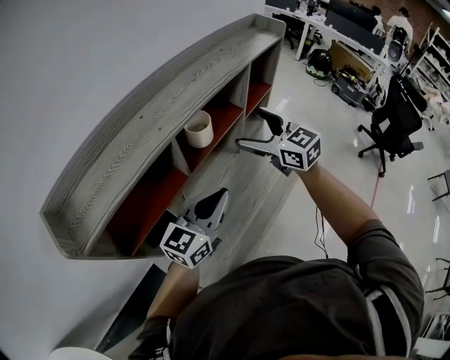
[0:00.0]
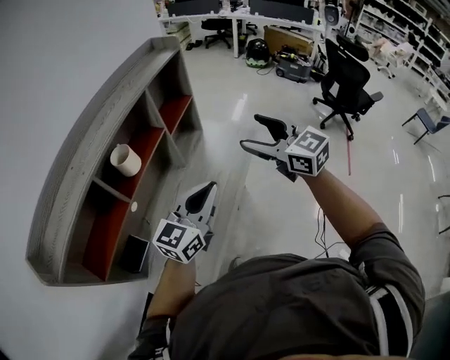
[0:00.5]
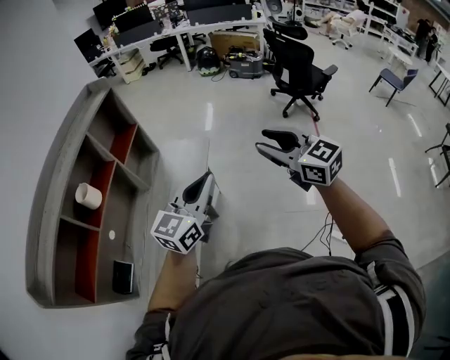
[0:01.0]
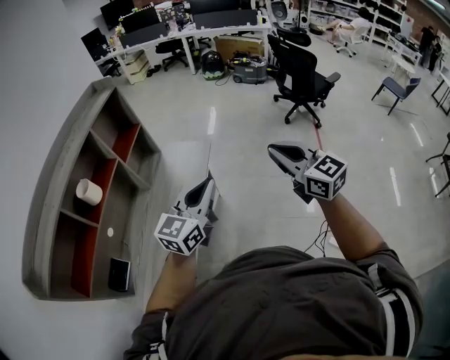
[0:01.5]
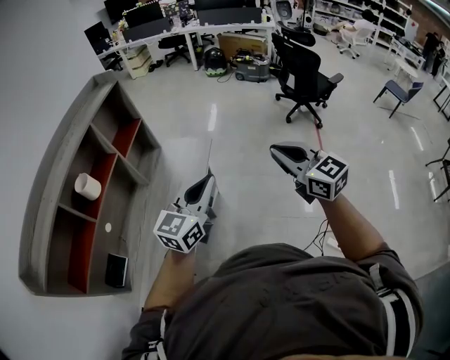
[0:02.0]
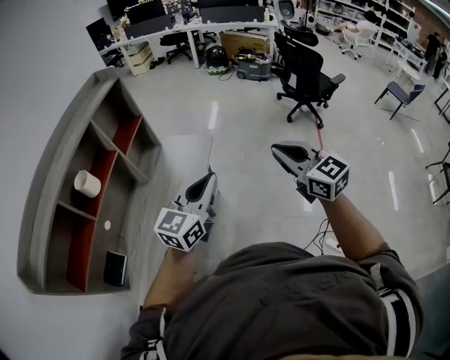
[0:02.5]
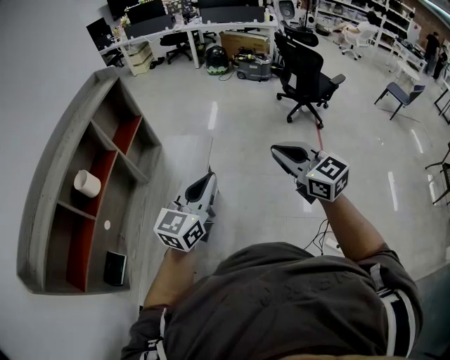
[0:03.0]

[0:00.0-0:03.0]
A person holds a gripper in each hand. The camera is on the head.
0:00.0 to 0:01.5: The right gripper changes place by approximately 50 cm, turns by about 30 degrees, and closes its fingers; the left gripper shifts by about 40 cm, and changes its angle by roughly 20 degrees.
0:01.5 to 0:03.0: Both grippers stay about where they are.

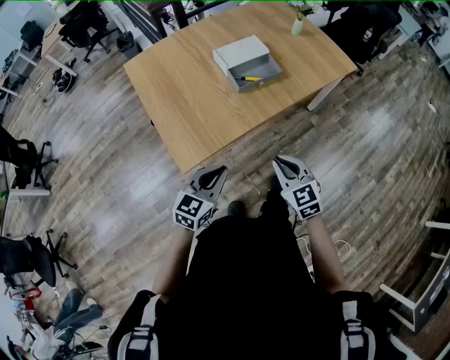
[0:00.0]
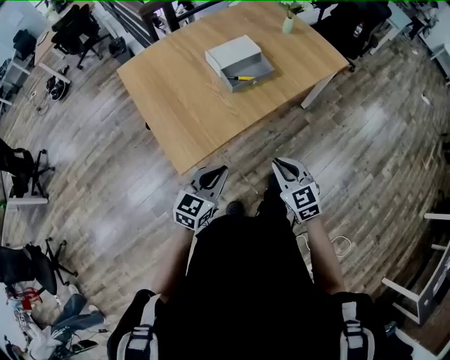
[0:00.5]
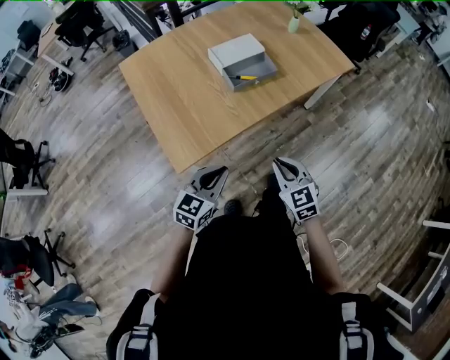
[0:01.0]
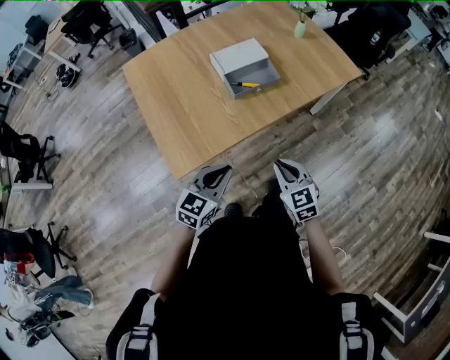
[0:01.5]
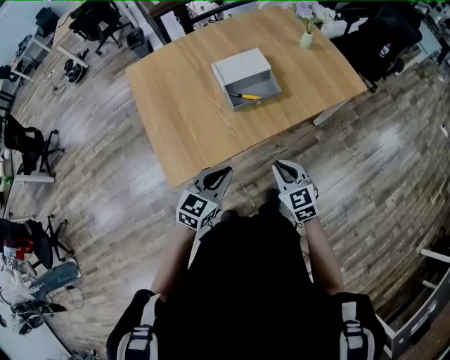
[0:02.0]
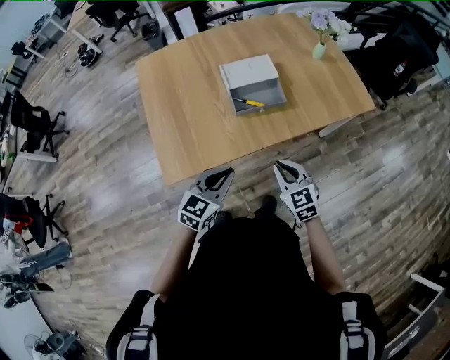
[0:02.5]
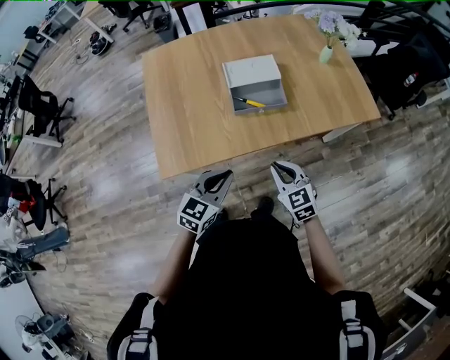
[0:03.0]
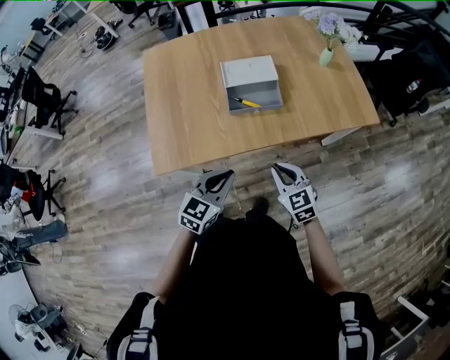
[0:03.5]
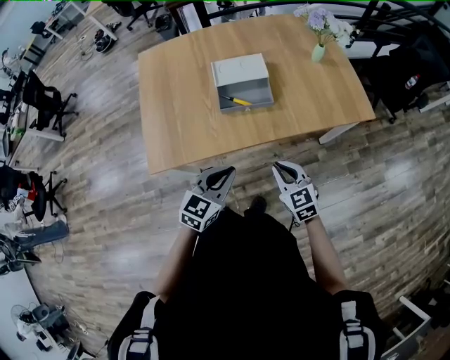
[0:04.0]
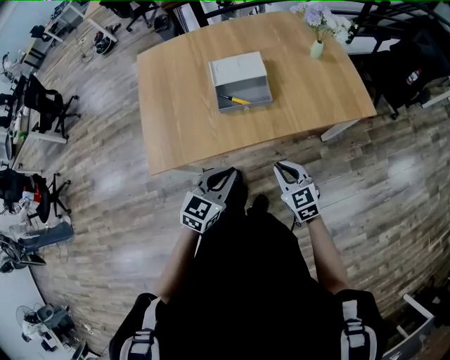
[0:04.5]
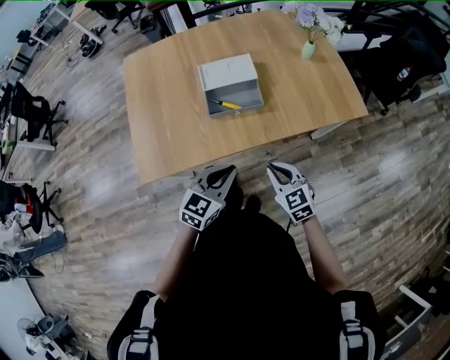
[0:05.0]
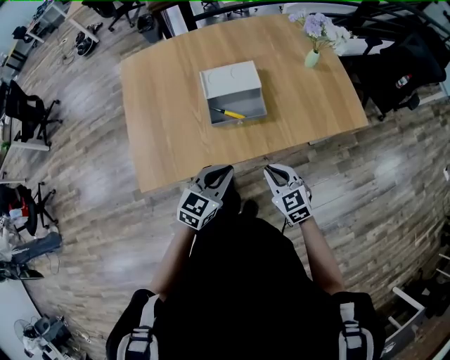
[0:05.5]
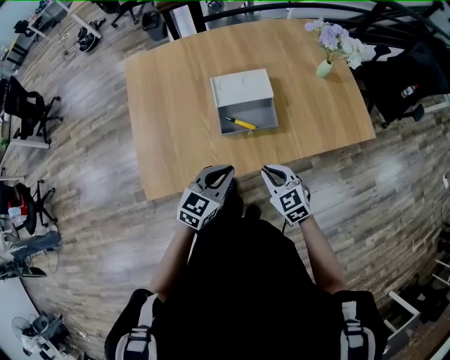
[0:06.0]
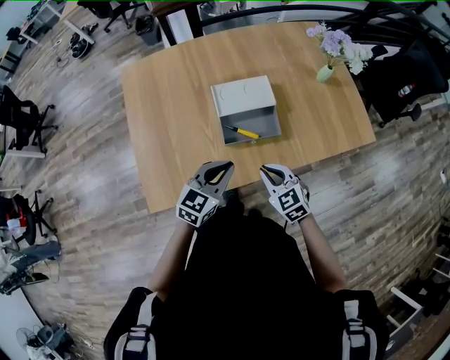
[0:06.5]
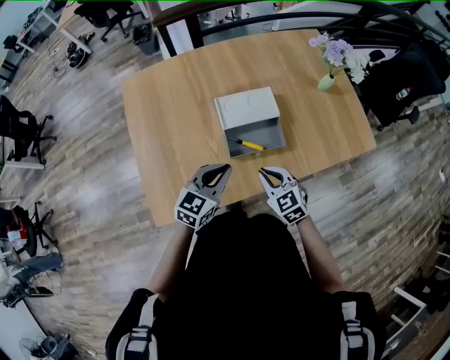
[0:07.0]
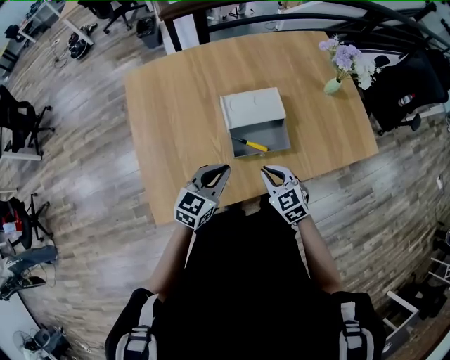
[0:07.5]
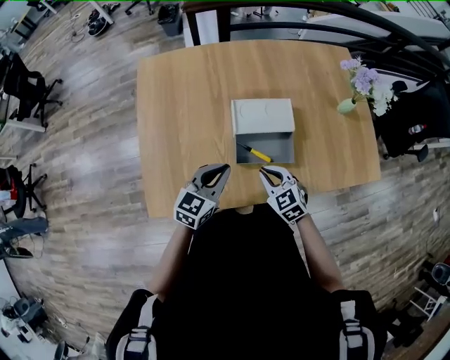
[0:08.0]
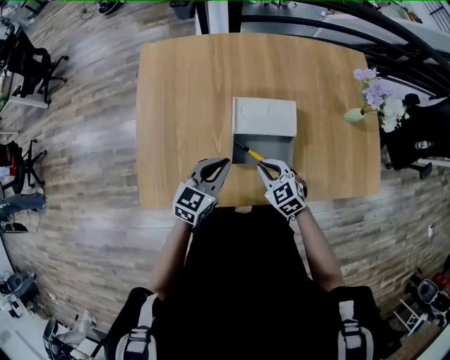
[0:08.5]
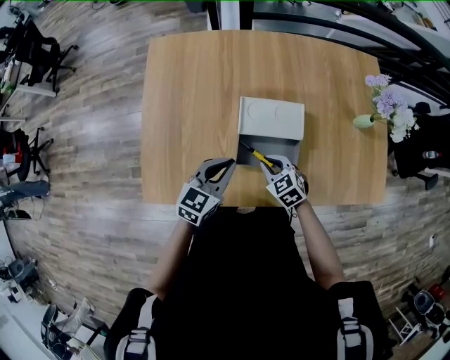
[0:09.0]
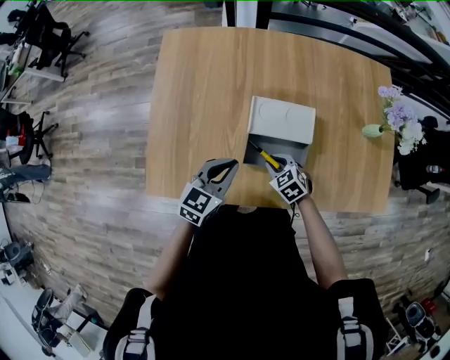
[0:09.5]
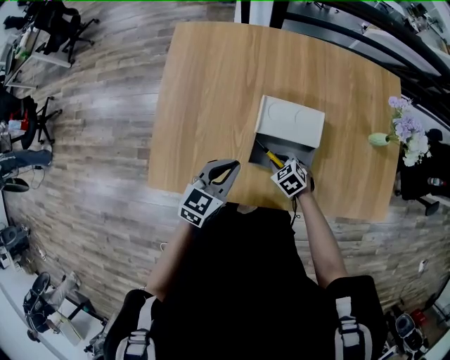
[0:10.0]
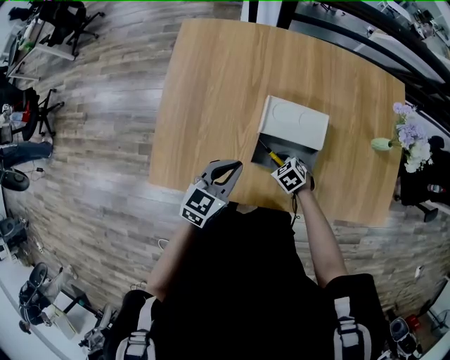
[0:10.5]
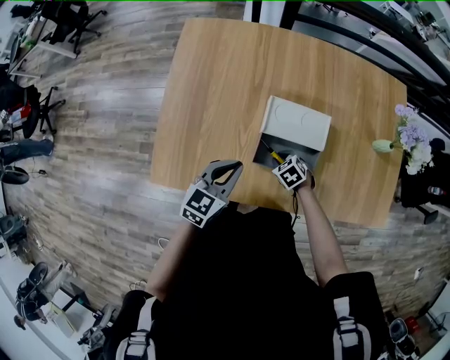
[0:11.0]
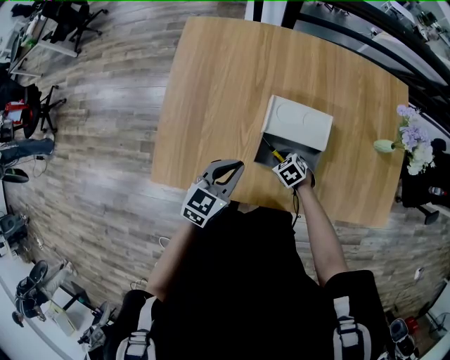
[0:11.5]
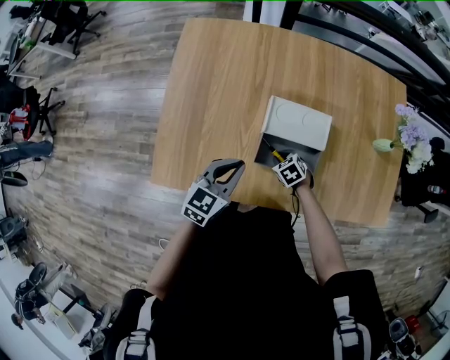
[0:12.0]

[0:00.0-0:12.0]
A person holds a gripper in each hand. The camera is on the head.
0:00.0 to 0:02.0: The two grippers go about 15 cm forward and to the right.
0:02.0 to 0:04.0: The two grippers go some 15 cm to the right.
0:04.0 to 0:06.0: Both grippers move forward and to the left, about 15 cm.
0:06.0 to 0:08.0: The grippers both shift forward and to the left by approximately 15 cm.
0:08.0 to 0:10.0: The right gripper goes some 15 cm downward and forward, and changes its angle by approximately 30 degrees.
0:10.0 to 0:12.0: The grippers make only small movements.

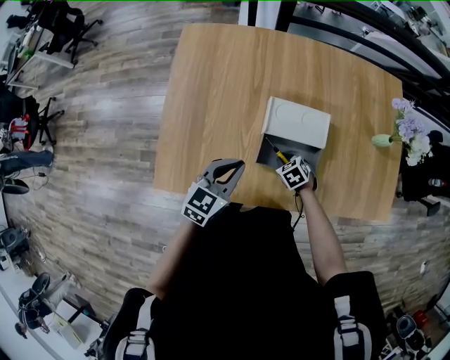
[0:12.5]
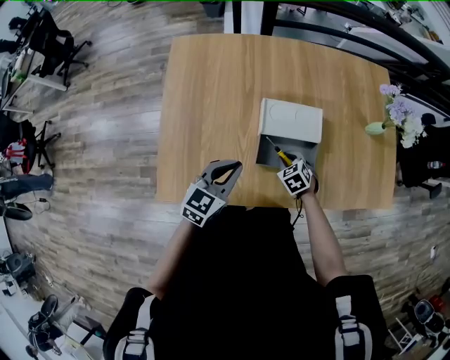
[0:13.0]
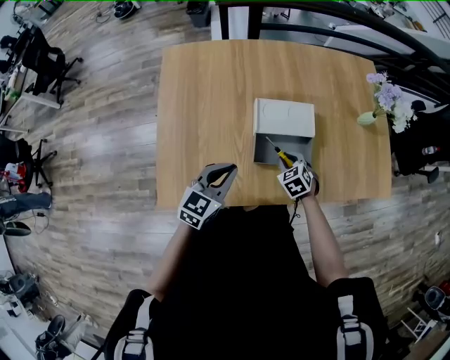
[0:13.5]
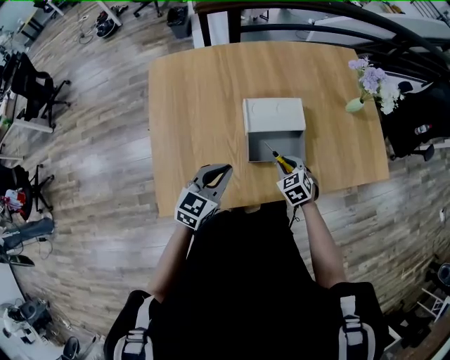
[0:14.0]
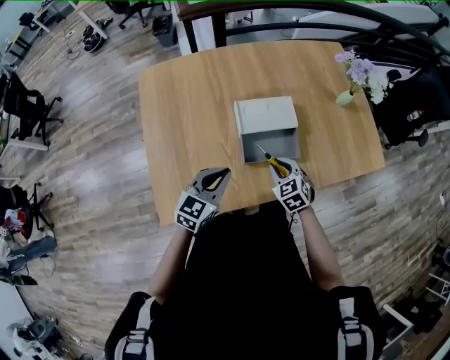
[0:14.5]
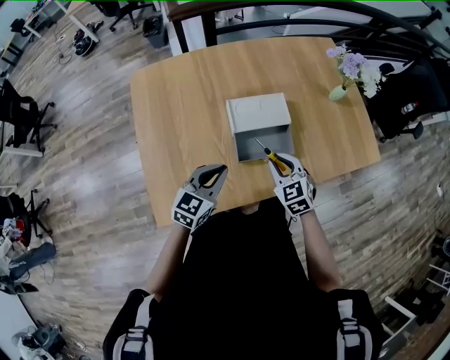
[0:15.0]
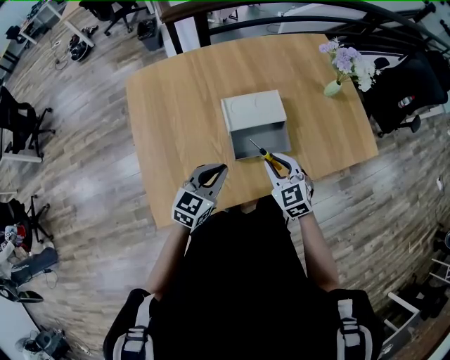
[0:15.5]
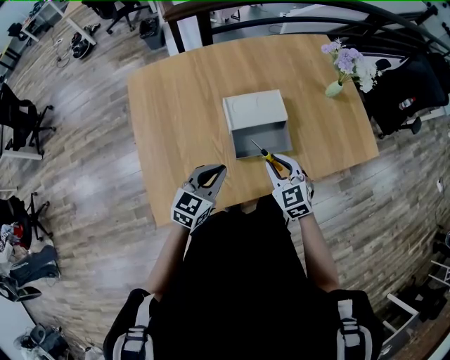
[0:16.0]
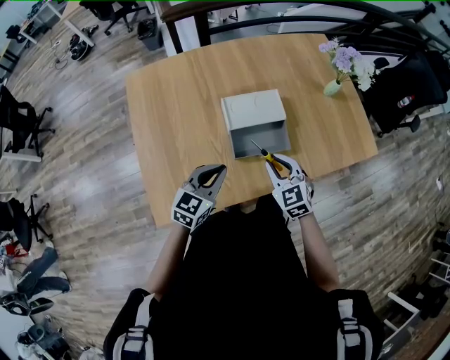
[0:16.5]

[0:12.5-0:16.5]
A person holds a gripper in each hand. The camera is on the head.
0:12.5 to 0:14.5: The right gripper goes about 15 cm upward, and changes its angle by approximately 30 degrees.
0:14.5 to 0:16.5: The right gripper shifts some 5 cm upward.

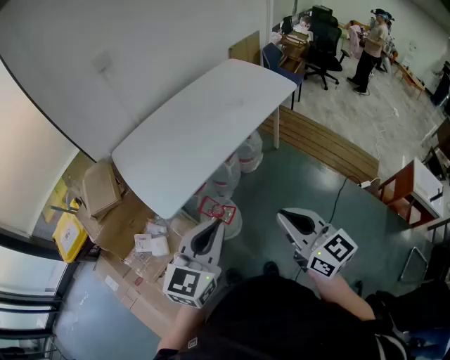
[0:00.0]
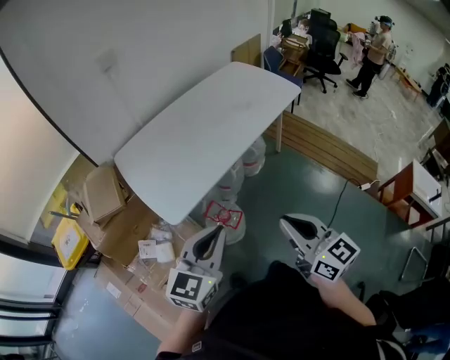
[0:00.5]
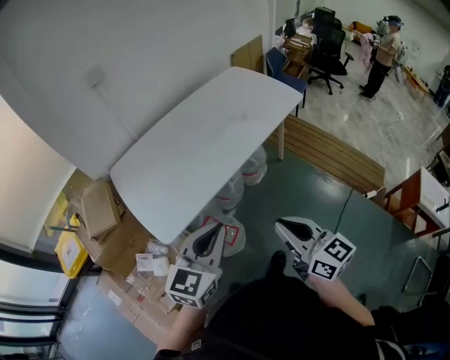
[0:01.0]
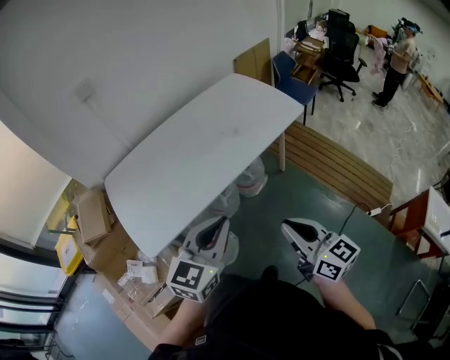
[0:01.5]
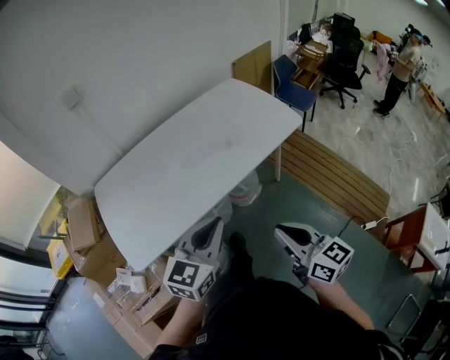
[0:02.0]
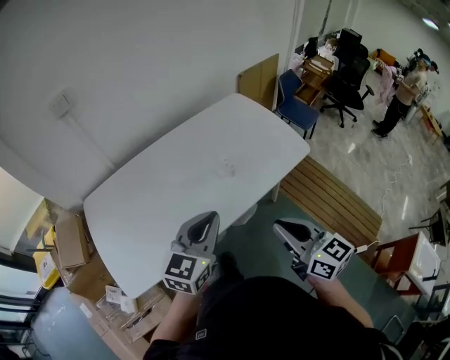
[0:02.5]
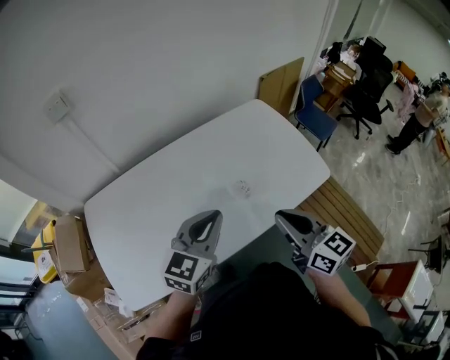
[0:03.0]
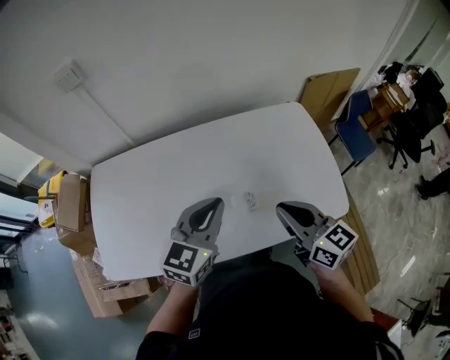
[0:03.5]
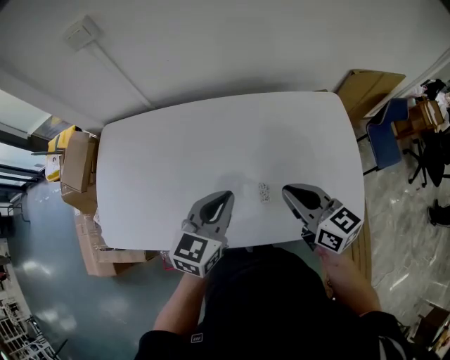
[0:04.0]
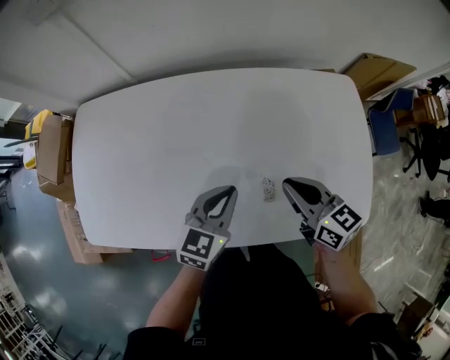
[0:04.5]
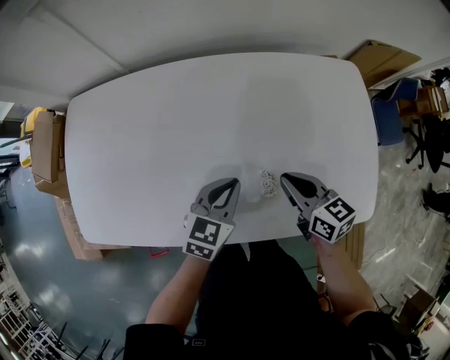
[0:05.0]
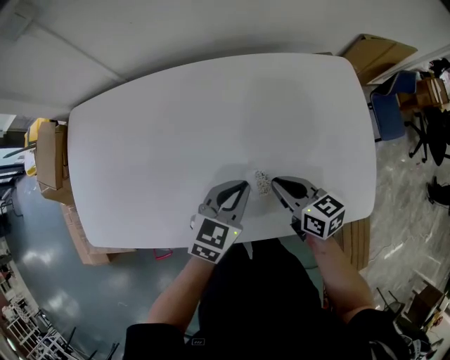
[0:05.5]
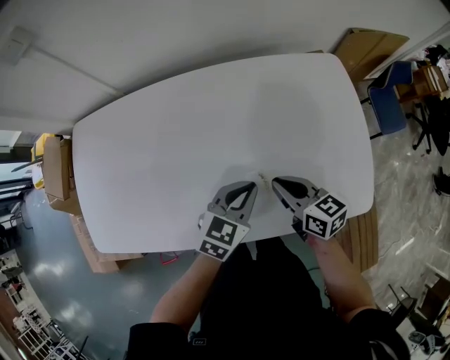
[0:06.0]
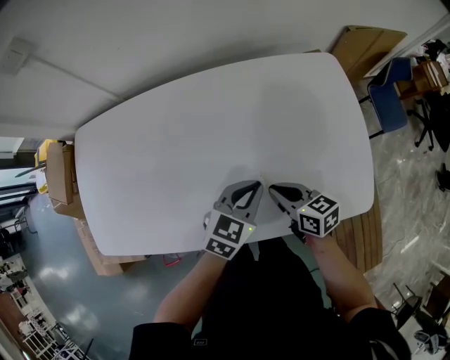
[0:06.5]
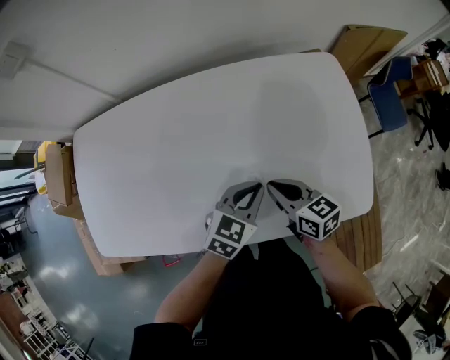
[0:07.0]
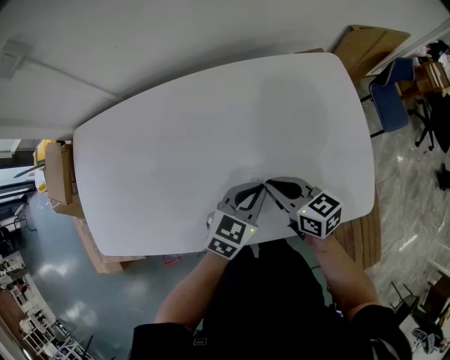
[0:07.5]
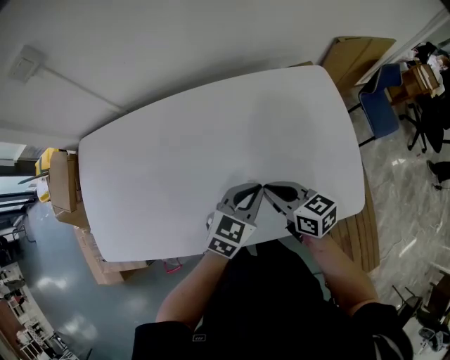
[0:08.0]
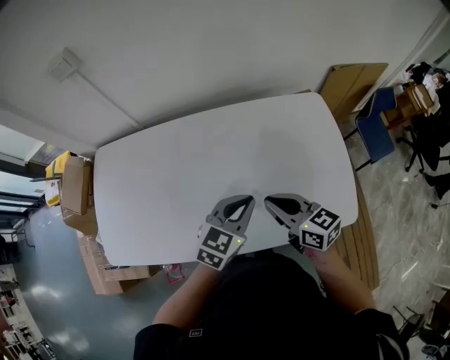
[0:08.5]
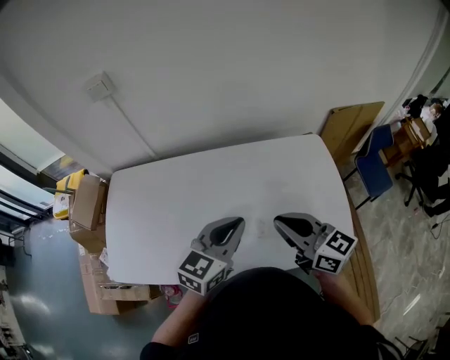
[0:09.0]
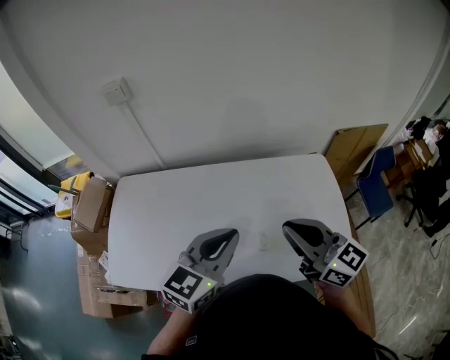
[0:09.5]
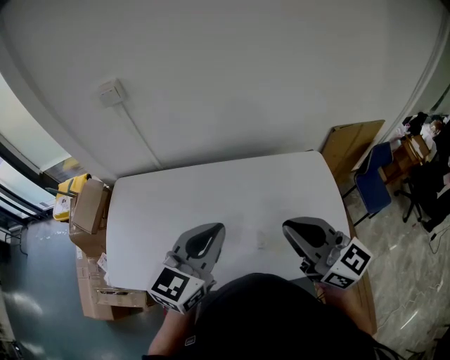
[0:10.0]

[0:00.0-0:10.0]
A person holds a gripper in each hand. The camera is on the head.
0:00.0 to 0:02.0: Both grippers travel together forward and to the right, some 30 cm.
0:02.0 to 0:04.0: The left gripper changes place by about 40 cm, and changes its angle by approximately 30 degrees. Meanwhile the right gripper shifts by approximately 50 cm, and rotates about 40 degrees.
0:04.0 to 0:06.0: The right gripper is displaced downward by roughly 15 cm, while the left gripper shifts roughly 15 cm downward and to the right.
0:06.0 to 0:08.0: The grippers stay close to where they were, moving slightly.
0:08.0 to 0:10.0: The right gripper goes some 30 cm upward, and swivels approximately 40 degrees. The left gripper shifts some 30 cm upward and to the left, and turns by some 30 degrees.
